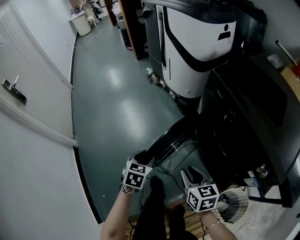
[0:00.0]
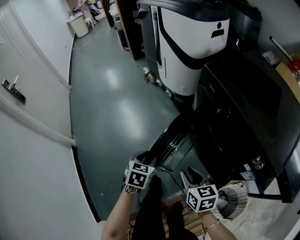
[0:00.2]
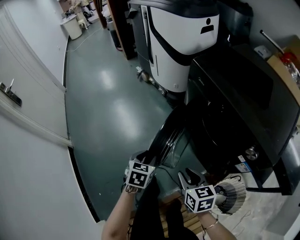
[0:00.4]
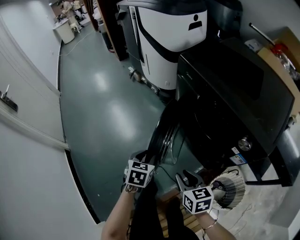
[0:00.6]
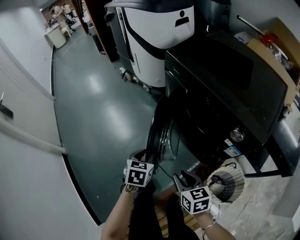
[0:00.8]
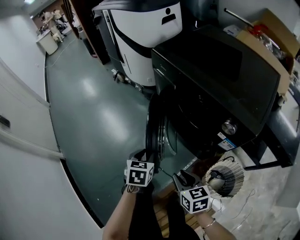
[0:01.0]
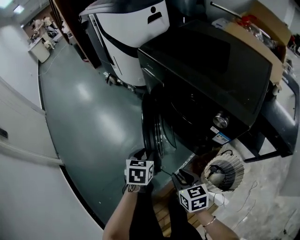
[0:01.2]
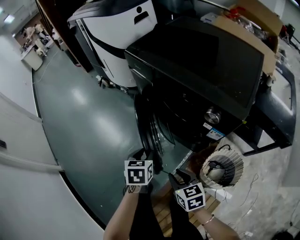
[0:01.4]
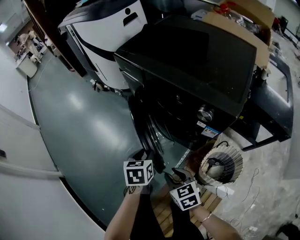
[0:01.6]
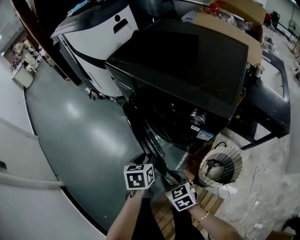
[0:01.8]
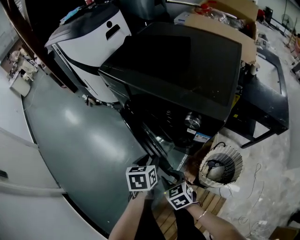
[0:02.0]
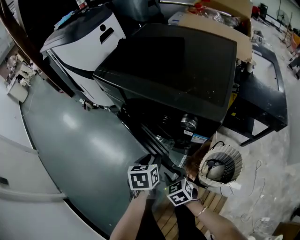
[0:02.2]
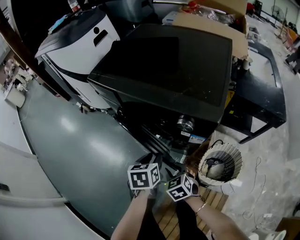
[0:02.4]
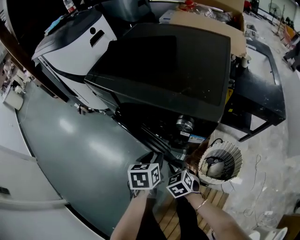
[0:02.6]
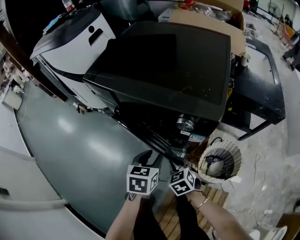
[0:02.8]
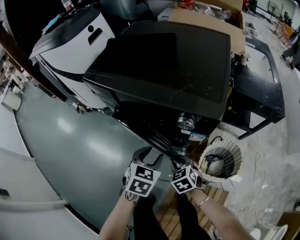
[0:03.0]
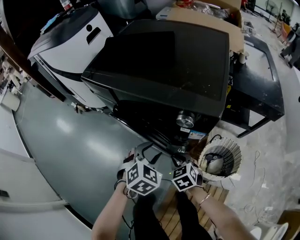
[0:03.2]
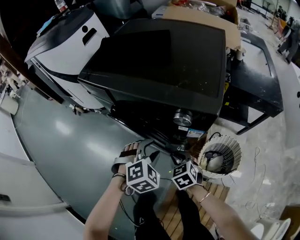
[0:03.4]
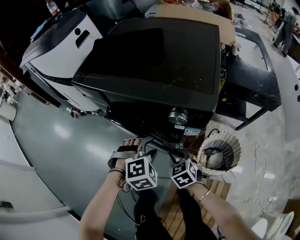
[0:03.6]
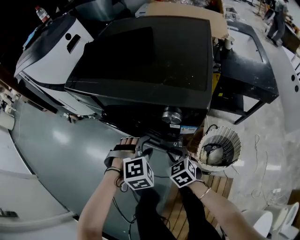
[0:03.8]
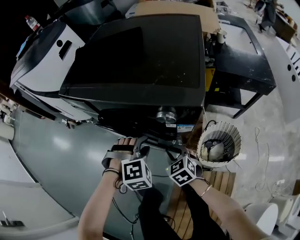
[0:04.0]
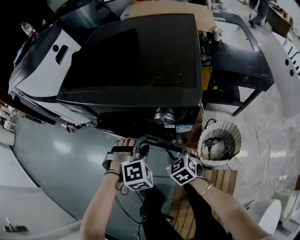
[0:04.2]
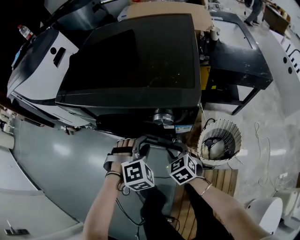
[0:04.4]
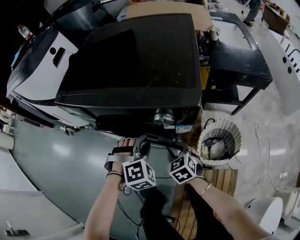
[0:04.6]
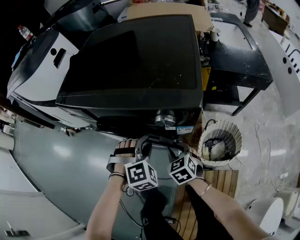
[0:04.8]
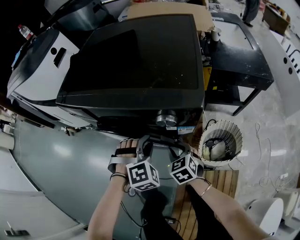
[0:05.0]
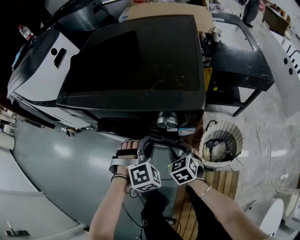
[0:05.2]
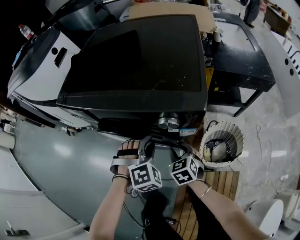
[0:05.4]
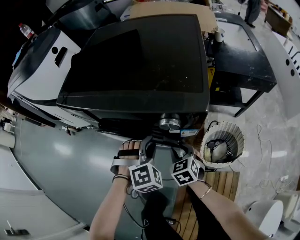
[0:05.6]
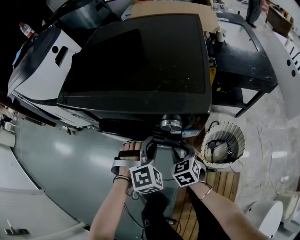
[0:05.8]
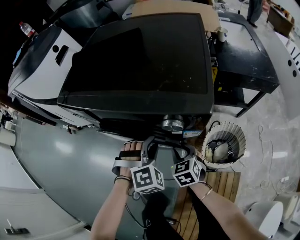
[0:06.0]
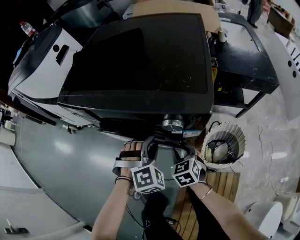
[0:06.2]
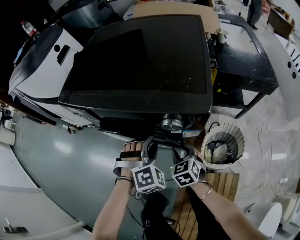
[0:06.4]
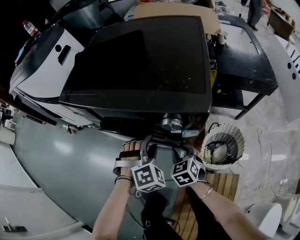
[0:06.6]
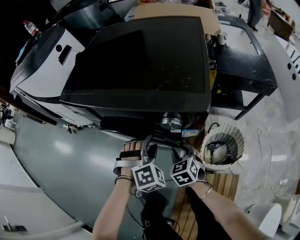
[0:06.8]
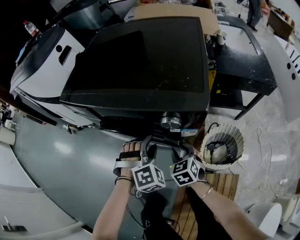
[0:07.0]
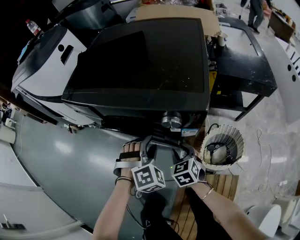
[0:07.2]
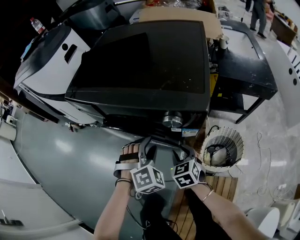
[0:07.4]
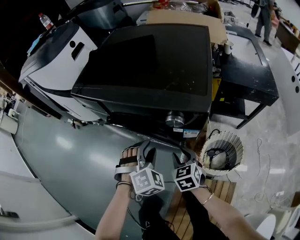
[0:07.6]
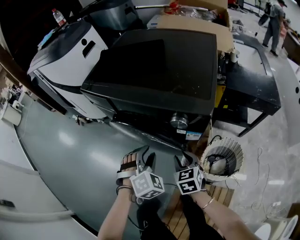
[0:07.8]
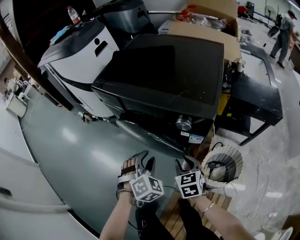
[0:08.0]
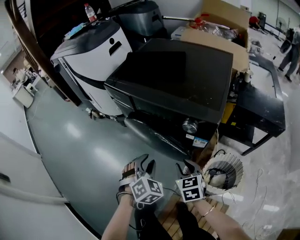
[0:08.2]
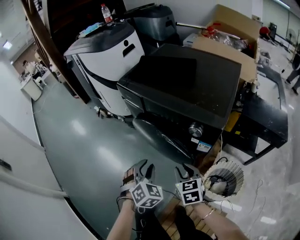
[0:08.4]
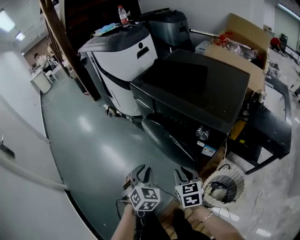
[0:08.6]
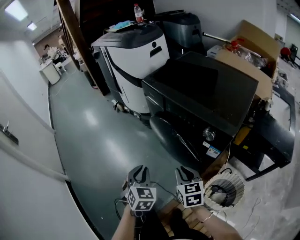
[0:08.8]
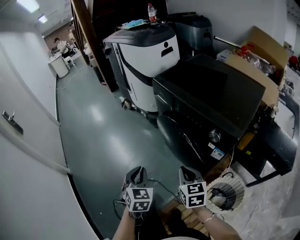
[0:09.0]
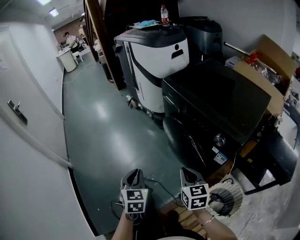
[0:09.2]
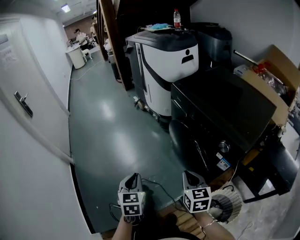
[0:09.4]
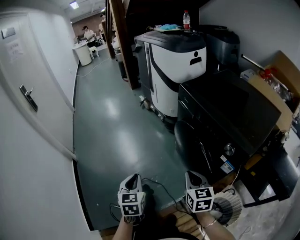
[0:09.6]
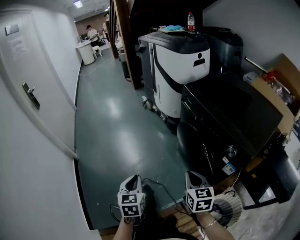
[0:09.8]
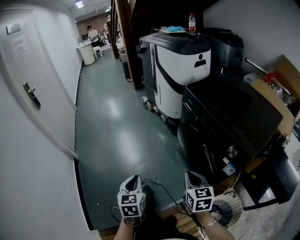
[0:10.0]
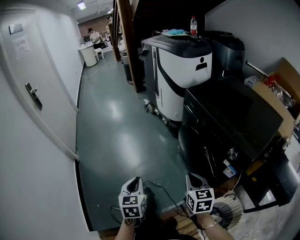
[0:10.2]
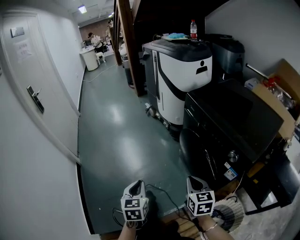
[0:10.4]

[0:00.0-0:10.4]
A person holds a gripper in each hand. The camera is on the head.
0.0 to 1.4 s: The left gripper travels to the right and backward by approximately 30 cm, while the right gripper goes roughly 25 cm backward and to the right.
1.4 to 3.0 s: The left gripper changes place by some 15 cm, and rotates some 40 degrees. Meanwhile the right gripper moves roughly 15 cm, and changes its angle by roughly 20 degrees.
3.0 to 4.4 s: The right gripper shifts by approximately 5 cm. Meanwhile the left gripper ends up approximately 5 cm from where it was, and rolls clockwise, seen from behind, by about 60 degrees.
4.4 to 7.4 s: The grippers make only small movements.
7.4 to 9.0 s: The right gripper travels upward by some 20 cm, changes its angle by approximately 30 degrees, and closes; the left gripper ends up approximately 35 cm from where it was, twists about 70 degrees counterclockwise, seen from behind, and closes its fingers.
9.0 to 10.4 s: The left gripper moves to the left and backward, roughly 15 cm, and changes its angle by roughly 30 degrees, while the right gripper is displaced to the left by roughly 5 cm.

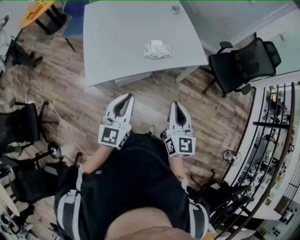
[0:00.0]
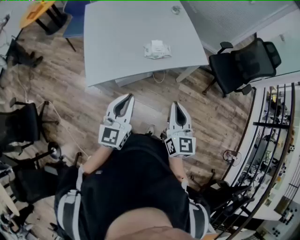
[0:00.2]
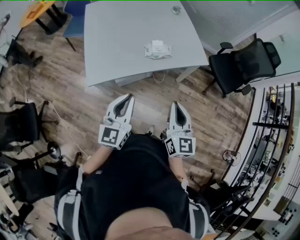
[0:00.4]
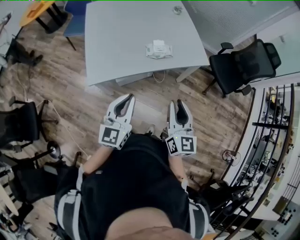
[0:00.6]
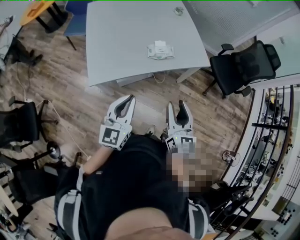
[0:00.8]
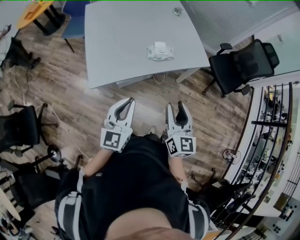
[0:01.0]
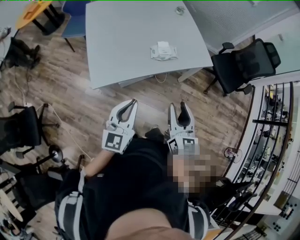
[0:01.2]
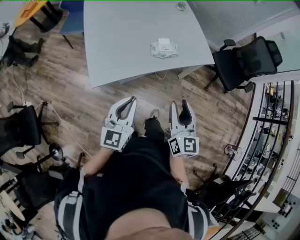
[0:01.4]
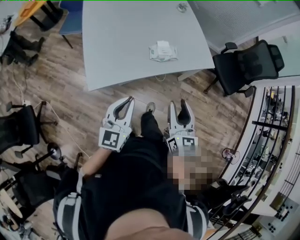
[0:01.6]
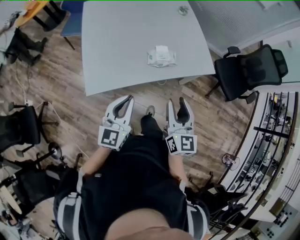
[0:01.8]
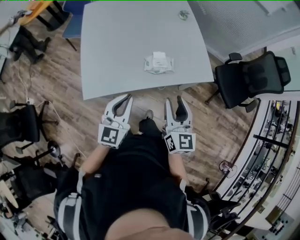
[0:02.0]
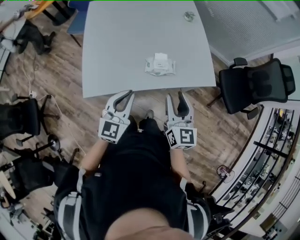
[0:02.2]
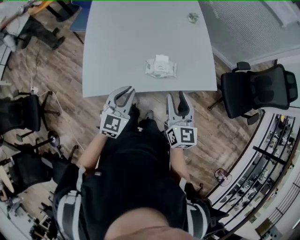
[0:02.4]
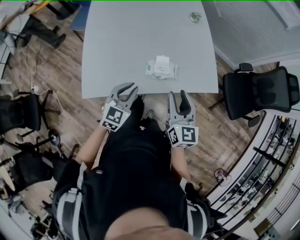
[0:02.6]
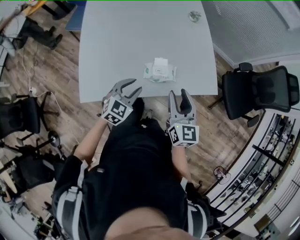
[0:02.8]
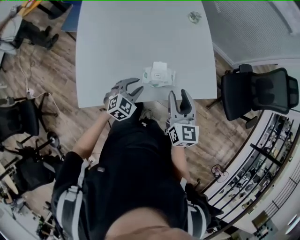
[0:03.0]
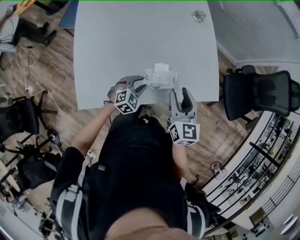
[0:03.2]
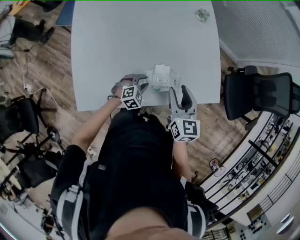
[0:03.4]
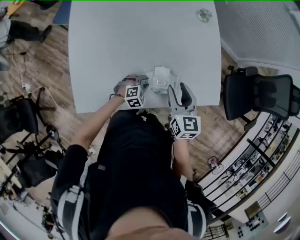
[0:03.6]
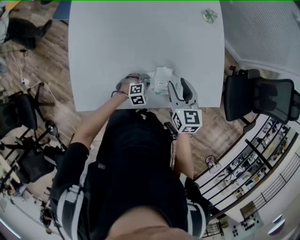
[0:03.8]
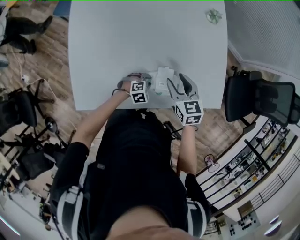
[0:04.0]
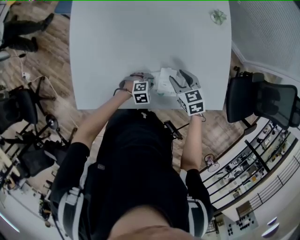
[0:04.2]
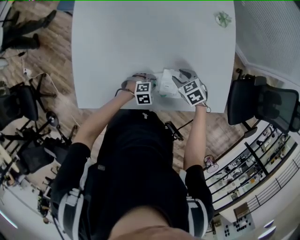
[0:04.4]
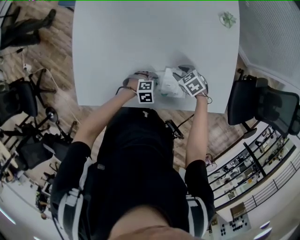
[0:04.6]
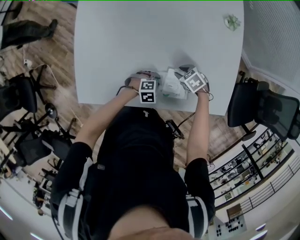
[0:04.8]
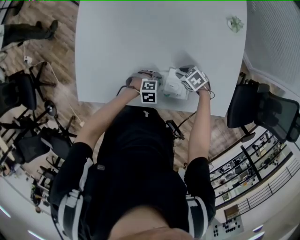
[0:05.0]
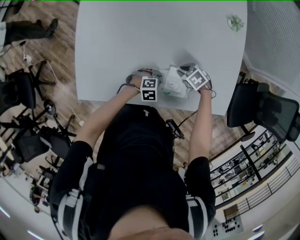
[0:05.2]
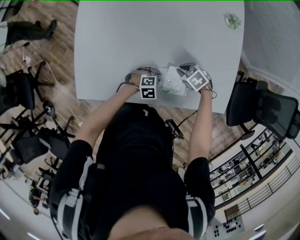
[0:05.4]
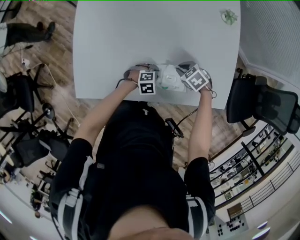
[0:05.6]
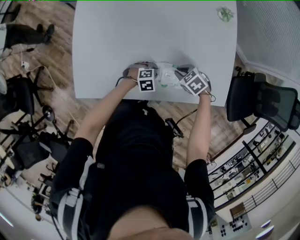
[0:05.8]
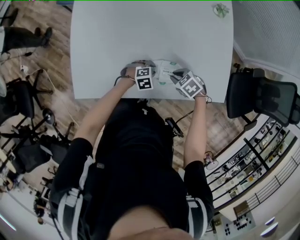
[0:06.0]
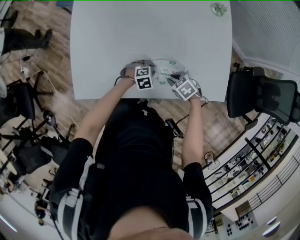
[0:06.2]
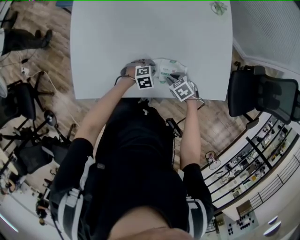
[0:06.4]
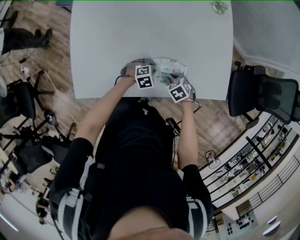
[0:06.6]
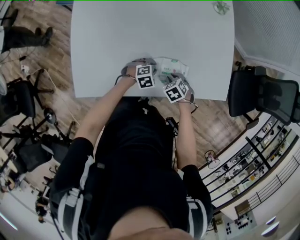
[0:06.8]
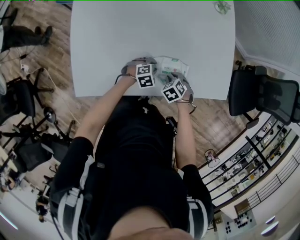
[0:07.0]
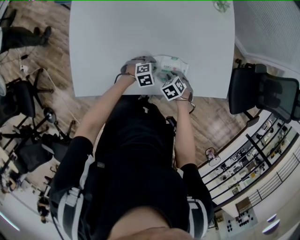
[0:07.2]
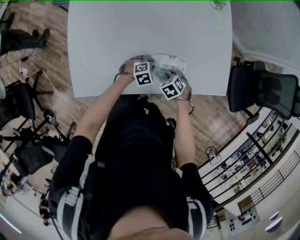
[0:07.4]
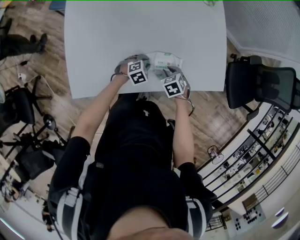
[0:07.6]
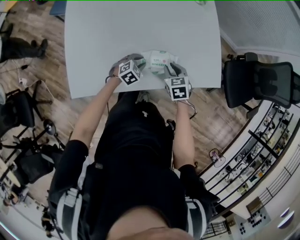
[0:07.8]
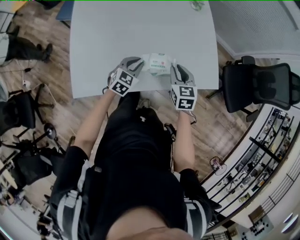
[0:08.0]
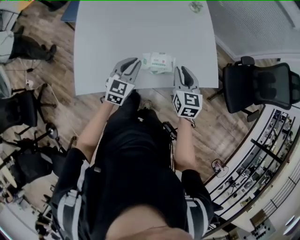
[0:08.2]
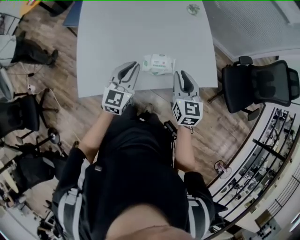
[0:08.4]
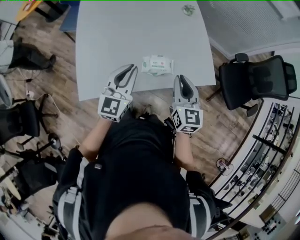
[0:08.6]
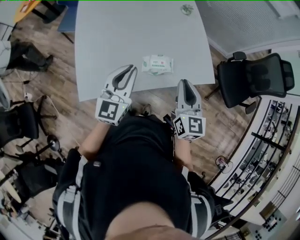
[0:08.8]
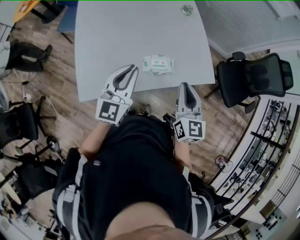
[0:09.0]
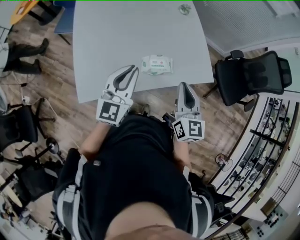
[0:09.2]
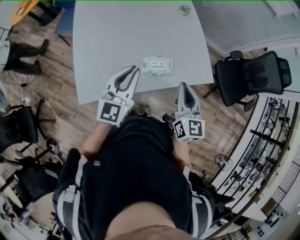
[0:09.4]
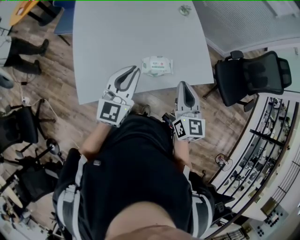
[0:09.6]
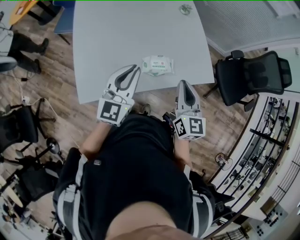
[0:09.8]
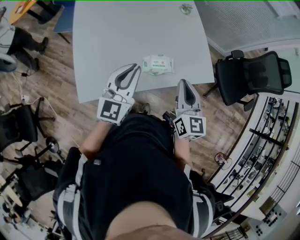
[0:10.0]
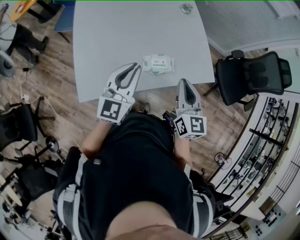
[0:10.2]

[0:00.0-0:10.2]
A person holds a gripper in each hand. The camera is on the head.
0.0 to 1.4 s: The two grippers go about 5 cm to the left. The right gripper opens its fingers.
1.4 to 3.0 s: The left gripper goes approximately 40 cm forward and downward, tips its fingers downward by approximately 40 degrees, and opens; the right gripper moves forward, some 35 cm.
3.0 to 4.4 s: The grippers both shift downward by some 25 cm. The right gripper tips its fingers downward by some 40 degrees. Meanwhile the left gripper rotates approximately 30 degrees.
4.4 to 5.8 s: The right gripper travels downward and back again, some 10 cm each way, and closes up.
5.8 to 7.2 s: The right gripper travels downward by roughly 5 cm, and swivels some 20 degrees.
7.2 to 8.8 s: The two grippers go approximately 40 cm upward. The left gripper tilts its fingers roughly 60 degrees upward, while the right gripper tilts its fingers approximately 70 degrees upward.
8.8 to 10.2 s: The grippers make only small movements.

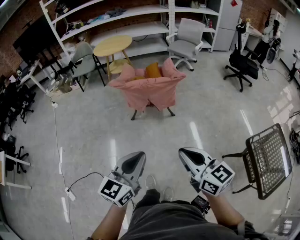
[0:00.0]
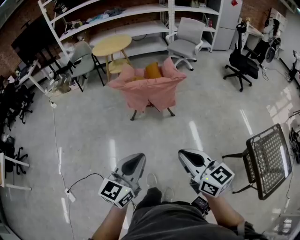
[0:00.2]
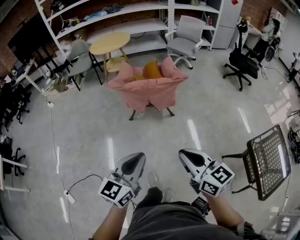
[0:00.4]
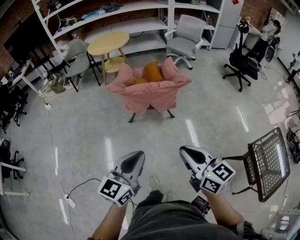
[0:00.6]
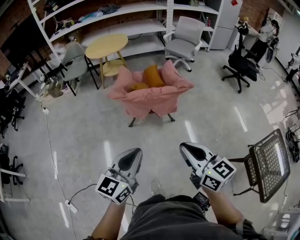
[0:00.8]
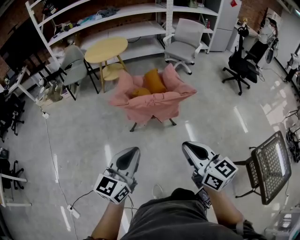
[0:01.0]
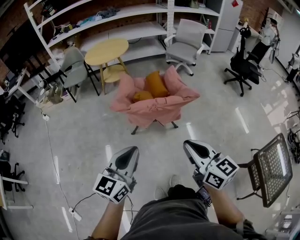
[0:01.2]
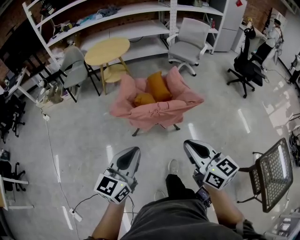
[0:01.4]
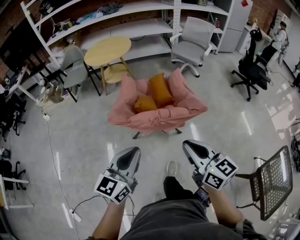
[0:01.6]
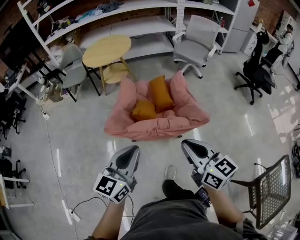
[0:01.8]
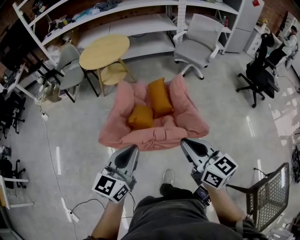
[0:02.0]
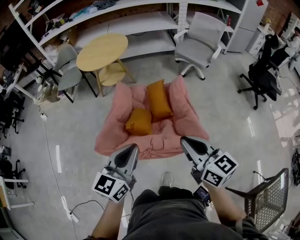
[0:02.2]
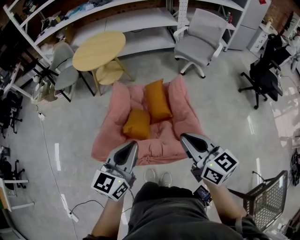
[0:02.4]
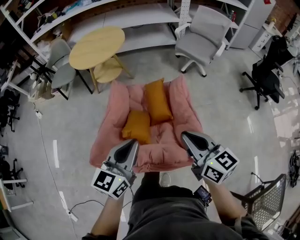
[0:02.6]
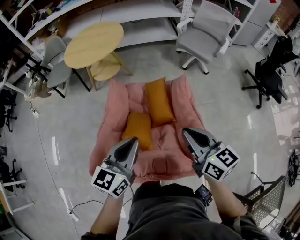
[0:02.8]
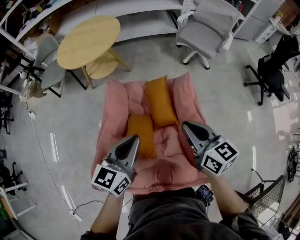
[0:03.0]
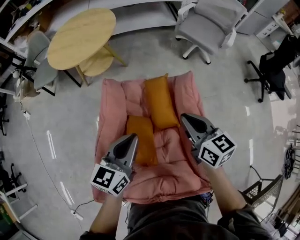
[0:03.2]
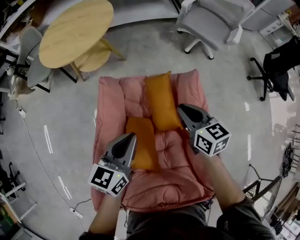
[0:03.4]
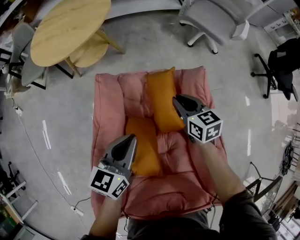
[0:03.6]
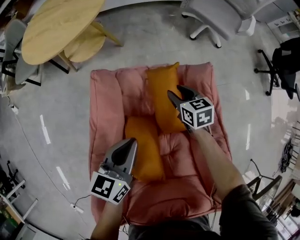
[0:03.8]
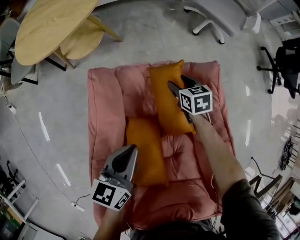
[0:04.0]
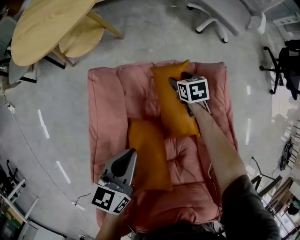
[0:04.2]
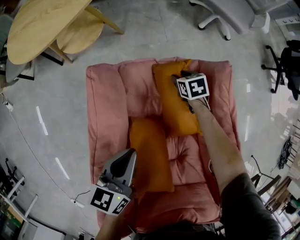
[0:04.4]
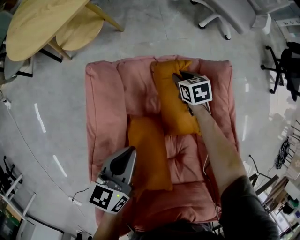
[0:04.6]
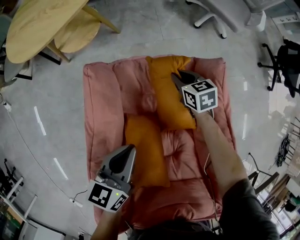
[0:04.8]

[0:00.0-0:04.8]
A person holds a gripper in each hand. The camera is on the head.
0.0 to 1.6 s: The grippers both shift forward by about 40 cm.
1.6 to 3.2 s: The pair of grippers is taken forward, roughly 60 cm.
3.2 to 4.8 s: The left gripper travels downward and forward by roughly 20 cm. The right gripper is displaced downward and forward by roughly 40 cm, rotates roughly 30 degrees, and opens and closes again.
